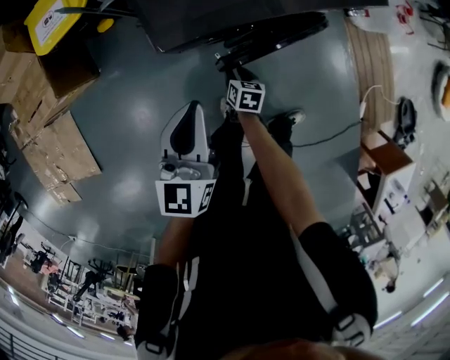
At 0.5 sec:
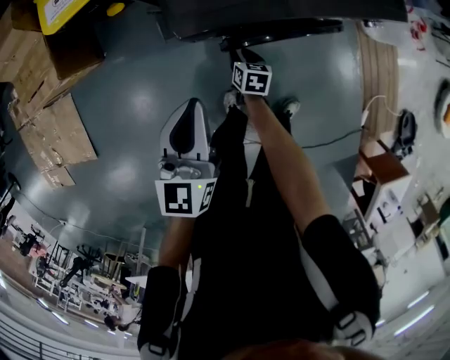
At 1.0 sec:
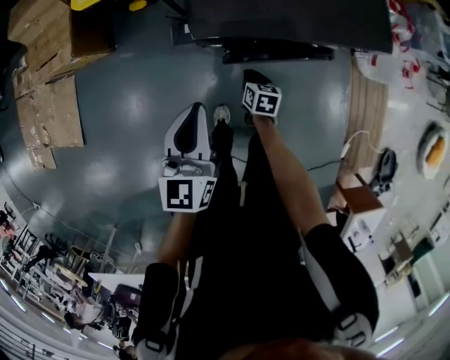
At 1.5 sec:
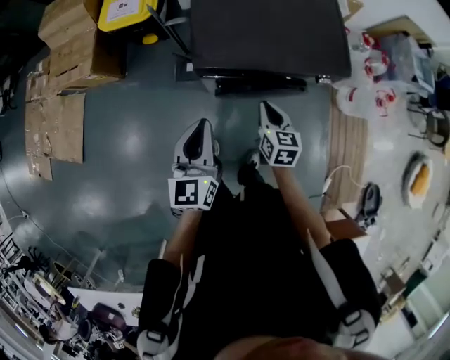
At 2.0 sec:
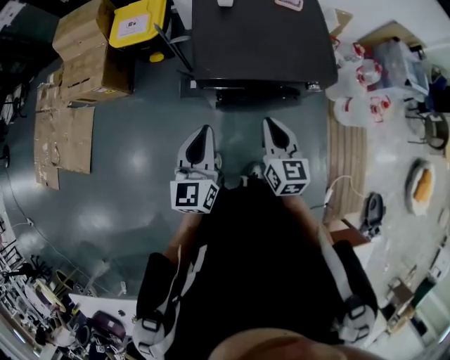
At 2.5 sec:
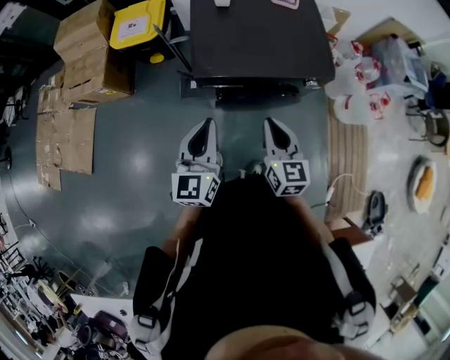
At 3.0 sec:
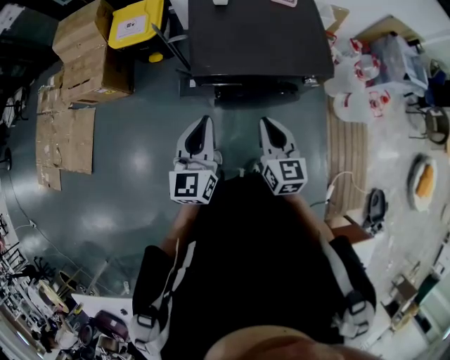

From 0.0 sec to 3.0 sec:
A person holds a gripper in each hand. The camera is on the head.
From 0.0 sec to 1.5 sec: The right gripper heads upward, covering some 30 cm, swivels some 30 degrees, and closes, while the left gripper is displaced upward and backward by roughly 15 cm, and changes its angle by about 20 degrees.
From 1.5 sec to 3.0 sec: The right gripper moves upward and backward, about 15 cm. The left gripper travels upward by about 5 cm.

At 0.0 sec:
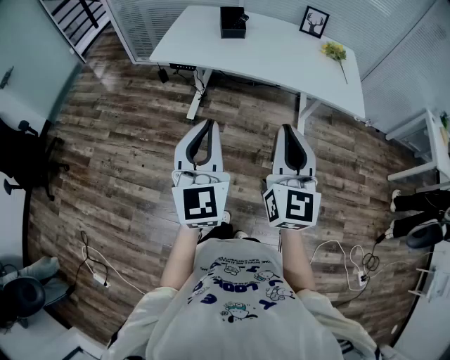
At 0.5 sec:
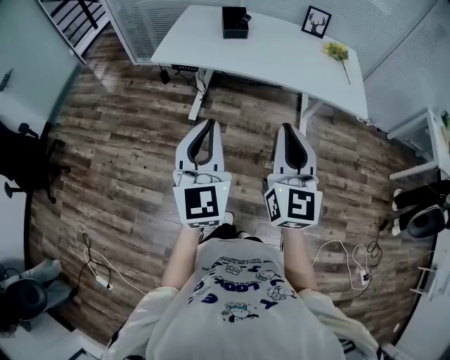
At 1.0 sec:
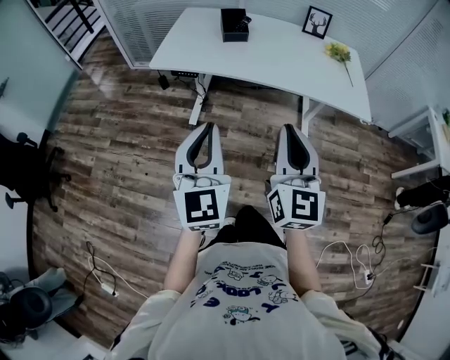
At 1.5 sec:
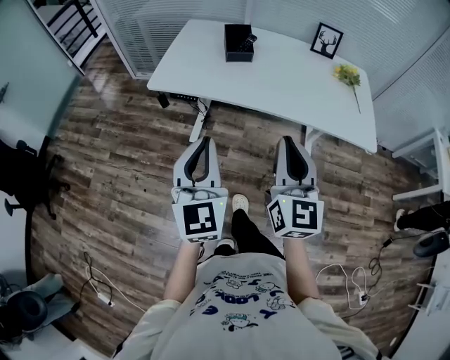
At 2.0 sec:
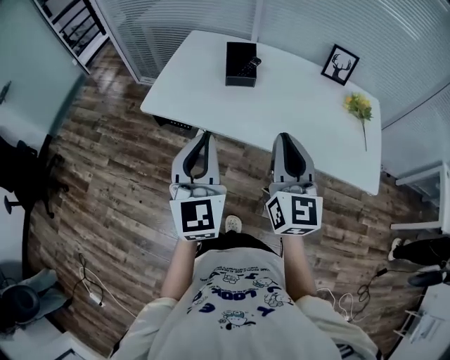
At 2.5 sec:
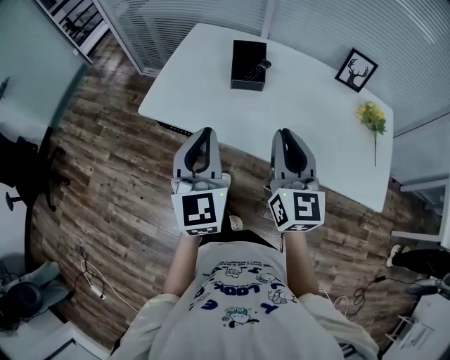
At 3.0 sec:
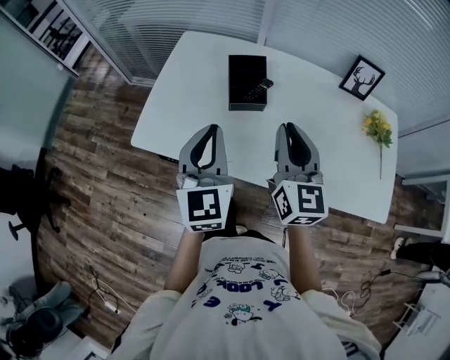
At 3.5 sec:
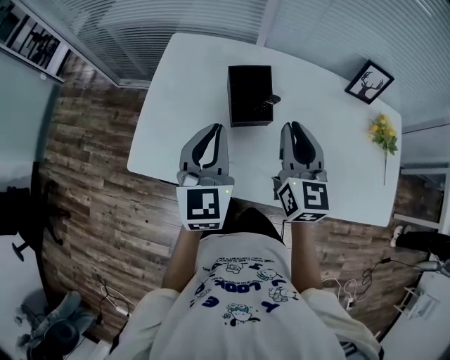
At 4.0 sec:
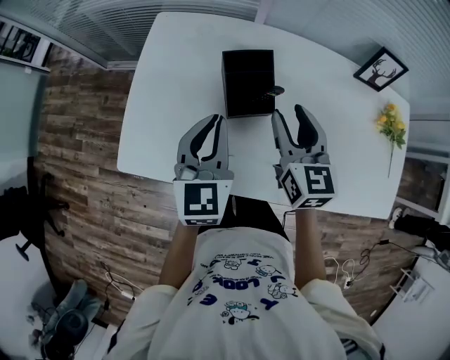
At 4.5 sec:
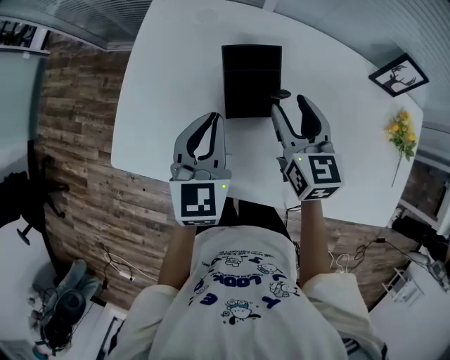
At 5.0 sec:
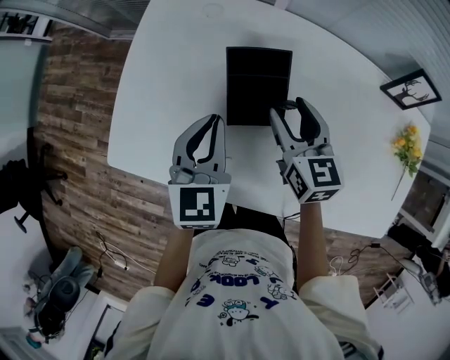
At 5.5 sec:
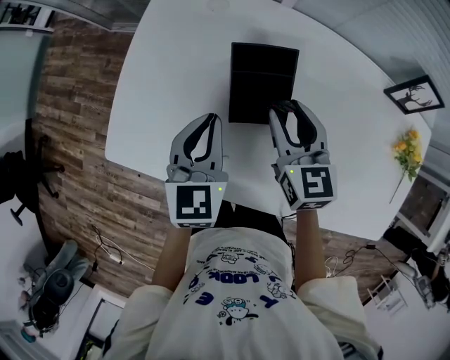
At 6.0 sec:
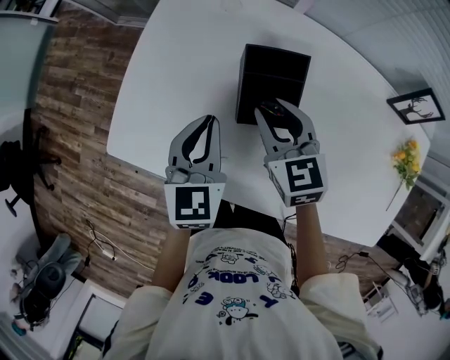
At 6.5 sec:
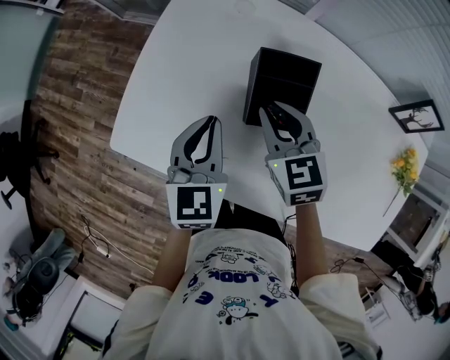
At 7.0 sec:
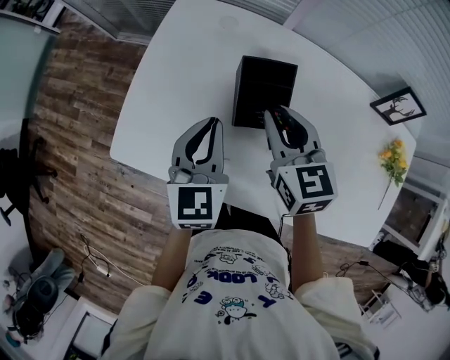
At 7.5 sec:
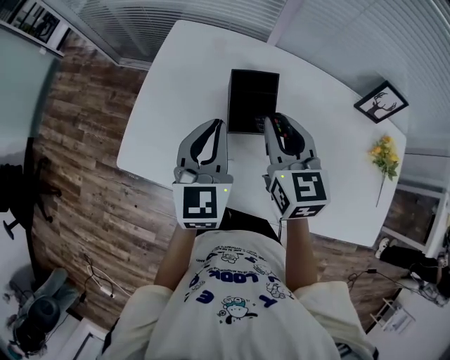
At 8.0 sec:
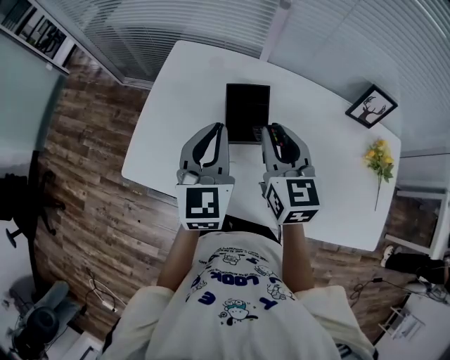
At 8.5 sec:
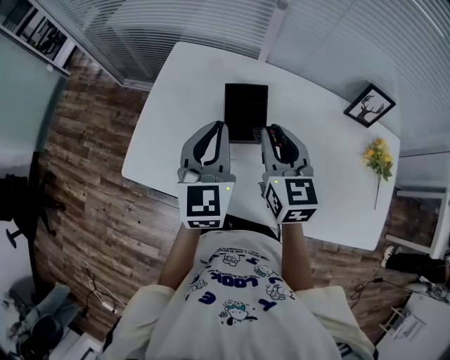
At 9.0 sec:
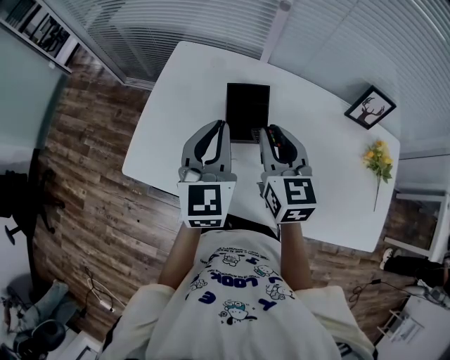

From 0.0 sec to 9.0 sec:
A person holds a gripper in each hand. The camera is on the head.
From 0.0 sec to 2.0 sec: The two grippers go about 35 cm forward.
From 2.0 sec to 4.5 sec: Both grippers are carried forward, some 40 cm. The grippers both shift downward by some 20 cm. The right gripper turns by some 30 degrees, and opens its fingers, while the left gripper changes its angle by approximately 30 degrees.
From 4.5 sec to 7.0 sec: The right gripper goes approximately 5 cm to the left, and closes up.
From 7.0 sec to 9.0 sec: The left gripper is displaced upward by some 10 cm. Meanwhile the right gripper travels upward and backward by roughly 10 cm.

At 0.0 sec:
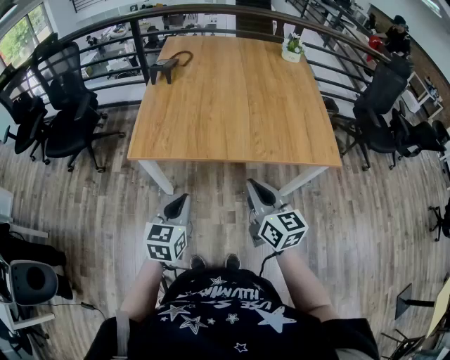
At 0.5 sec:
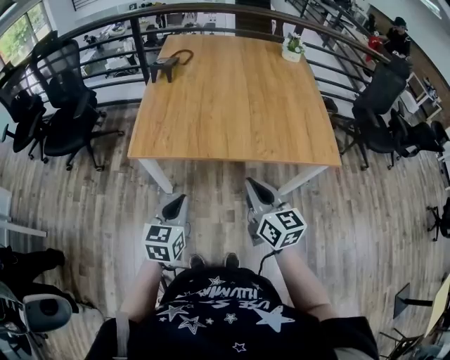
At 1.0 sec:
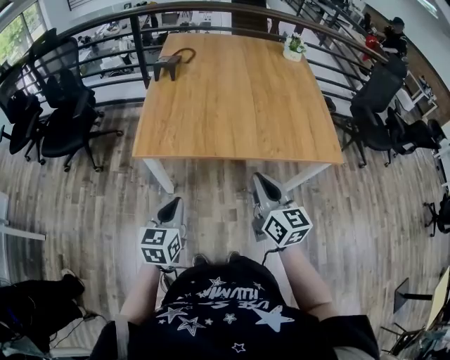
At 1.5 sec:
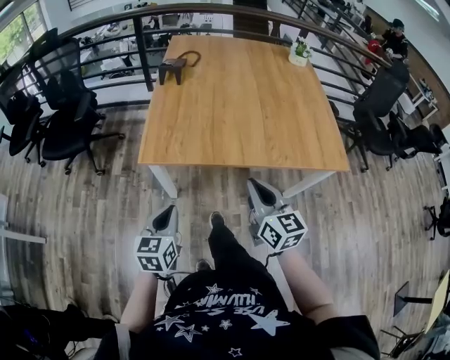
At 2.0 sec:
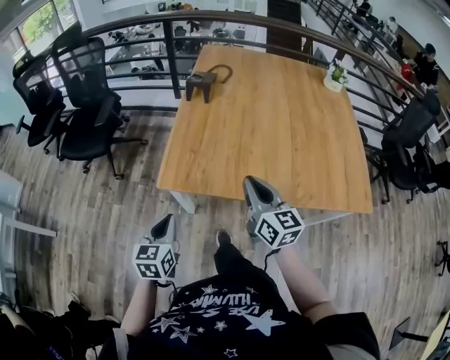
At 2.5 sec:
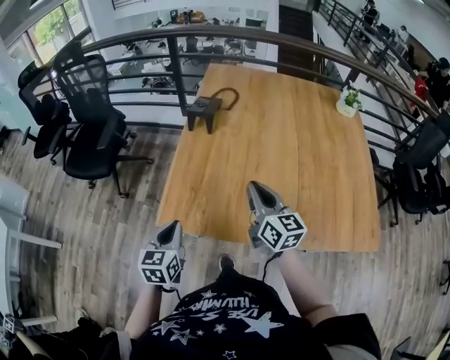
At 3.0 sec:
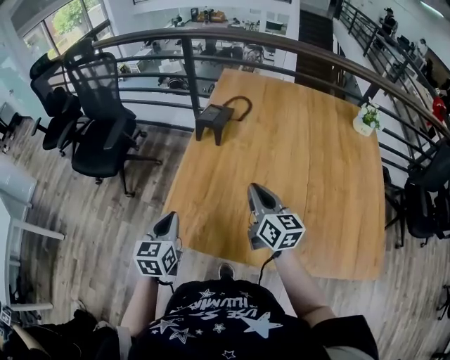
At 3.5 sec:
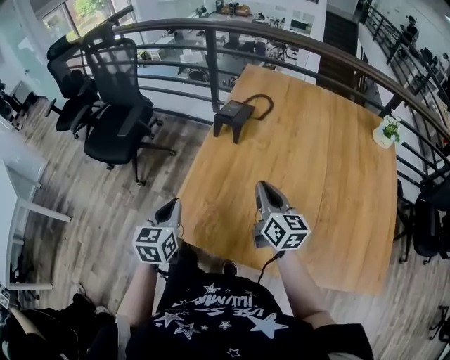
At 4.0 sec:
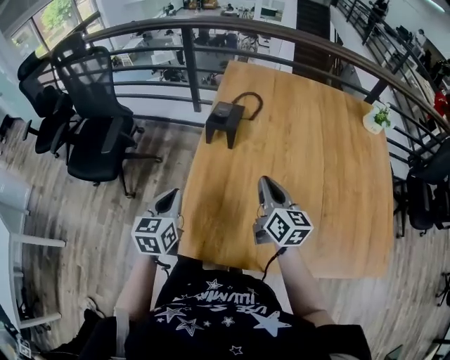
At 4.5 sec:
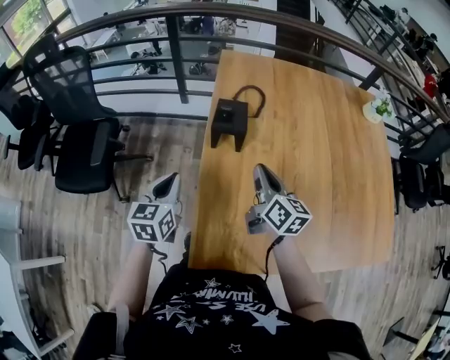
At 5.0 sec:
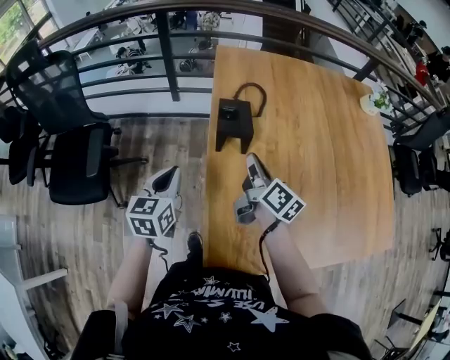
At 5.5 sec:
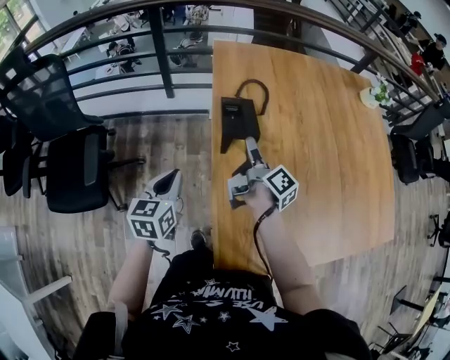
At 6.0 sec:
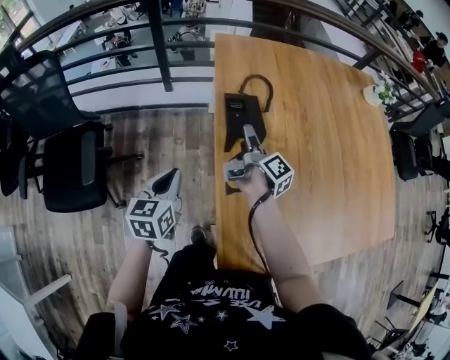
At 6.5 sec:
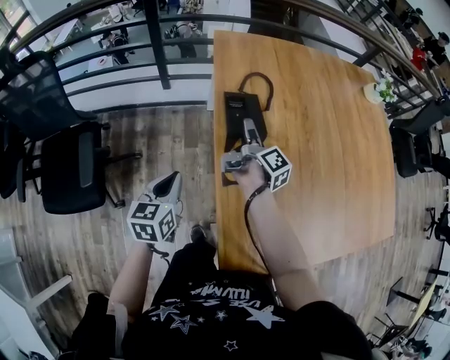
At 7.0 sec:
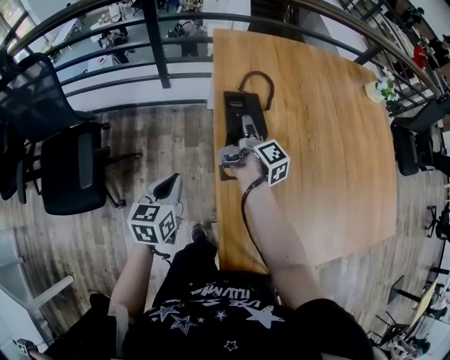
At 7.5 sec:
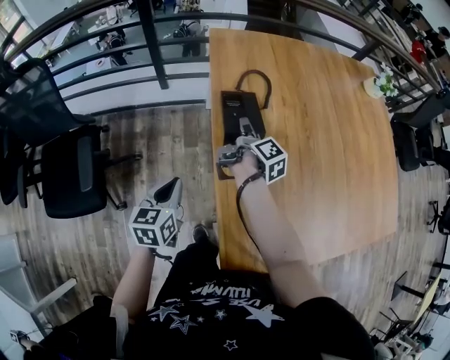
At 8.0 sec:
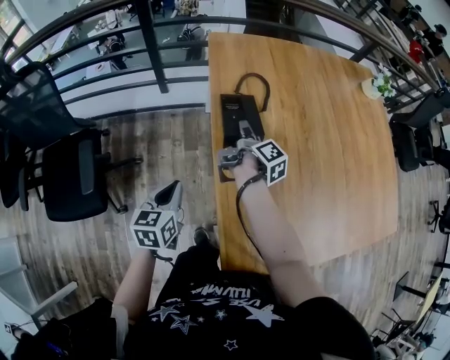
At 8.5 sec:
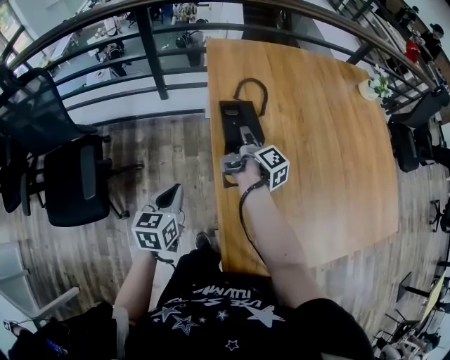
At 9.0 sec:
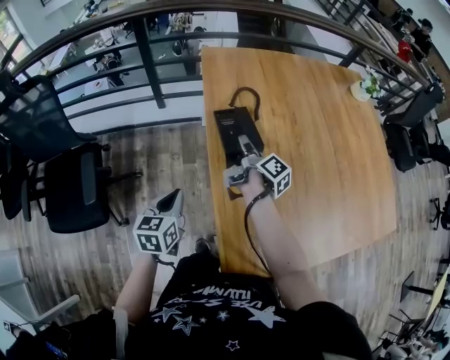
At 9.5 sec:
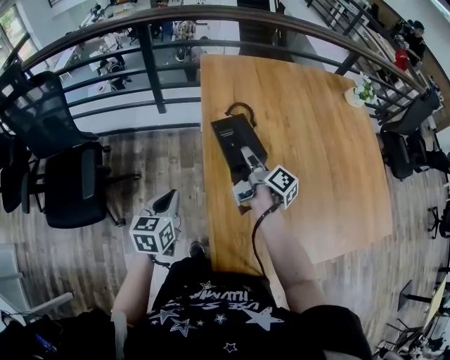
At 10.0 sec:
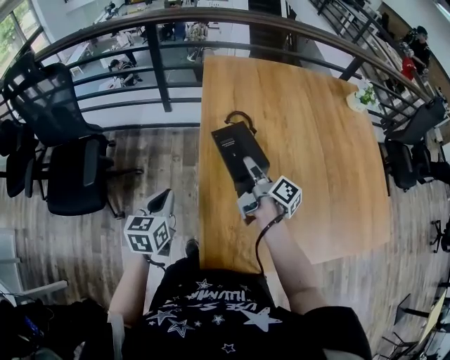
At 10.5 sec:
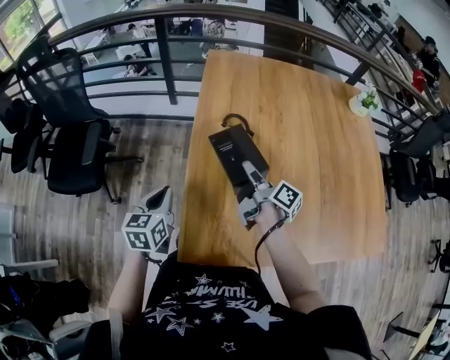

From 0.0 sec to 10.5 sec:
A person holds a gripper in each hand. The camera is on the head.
From 0.0 sec to 2.0 sec: The right gripper goes some 20 cm forward and to the left; the left gripper travels to the left and forward by about 20 cm.
From 2.0 sec to 4.0 sec: Both grippers travel together forward, some 30 cm.
From 4.0 sec to 6.5 sec: The right gripper shifts by about 30 cm, twists roughly 60 degrees clockwise, seen from behind, and opens up, while the left gripper moves roughly 25 cm, and changes its angle by approximately 20 degrees.
From 6.5 sec to 8.5 sec: The right gripper closes up.
From 8.5 sec to 10.5 sec: The left gripper travels backward, to the right and upward by approximately 15 cm; the right gripper goes roughly 20 cm backward and to the right, and swivels approximately 30 degrees.

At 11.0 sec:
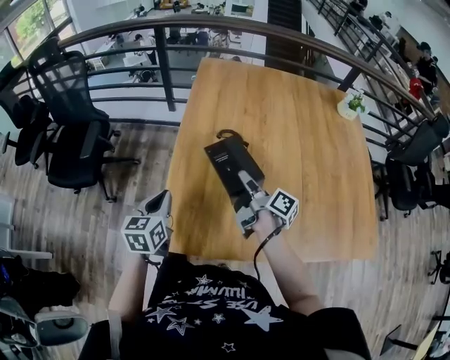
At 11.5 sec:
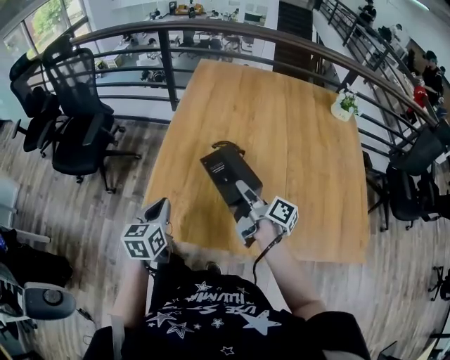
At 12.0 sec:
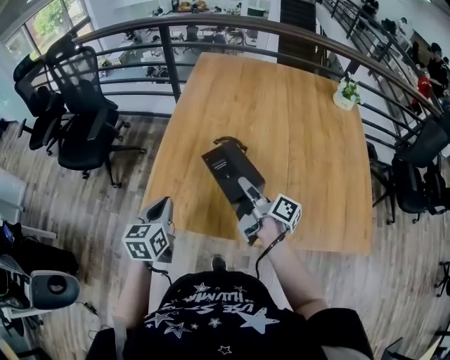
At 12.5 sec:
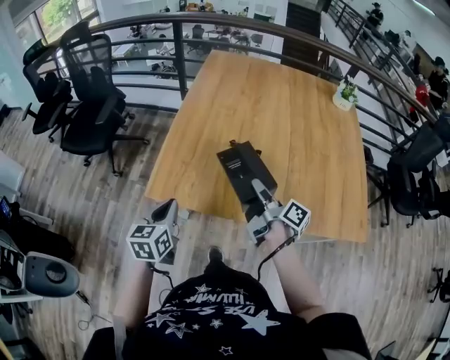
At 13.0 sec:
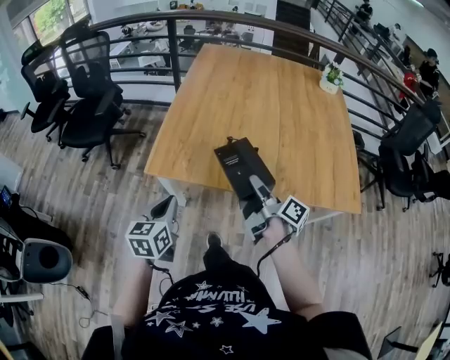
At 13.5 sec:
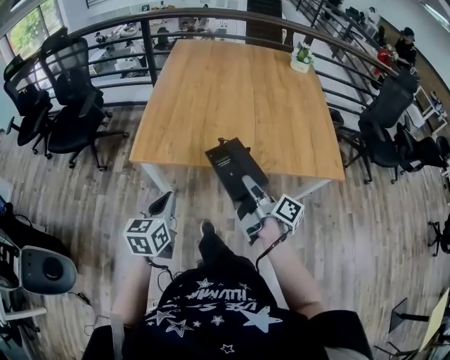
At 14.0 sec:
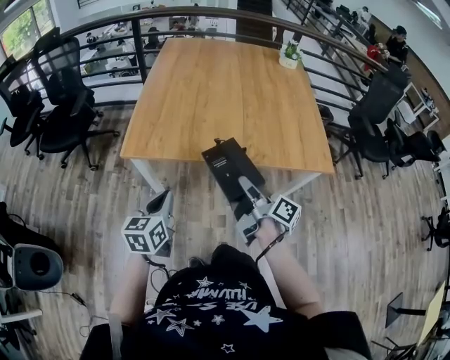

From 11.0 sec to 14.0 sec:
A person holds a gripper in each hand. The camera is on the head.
From 11.0 sec to 12.5 sec: The grippers both shift backward by roughly 20 cm.
From 12.5 sec to 14.0 sec: The right gripper is displaced backward by some 25 cm, while the left gripper moves backward and to the right, about 20 cm.
